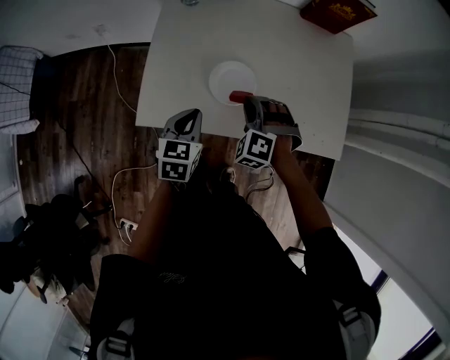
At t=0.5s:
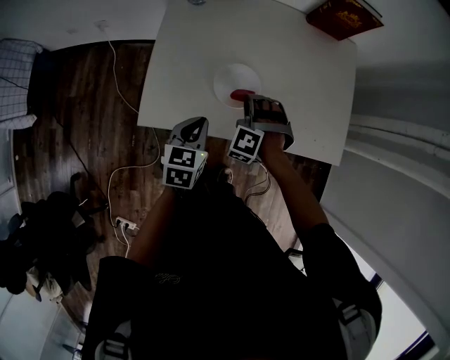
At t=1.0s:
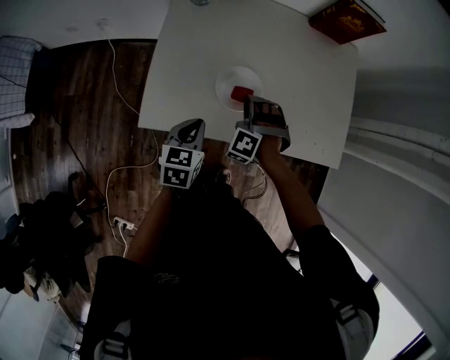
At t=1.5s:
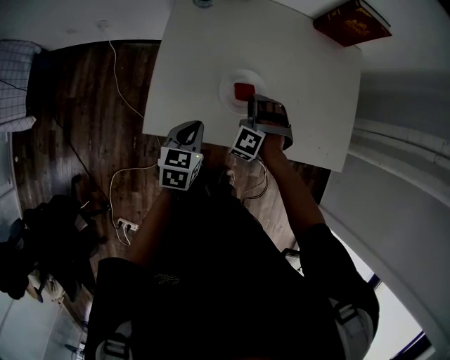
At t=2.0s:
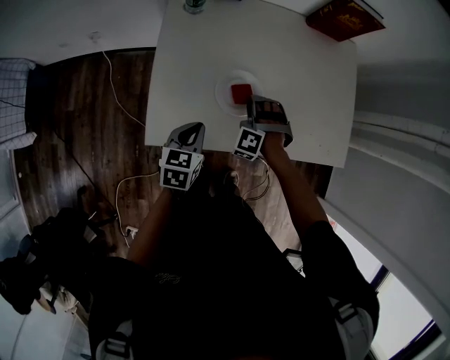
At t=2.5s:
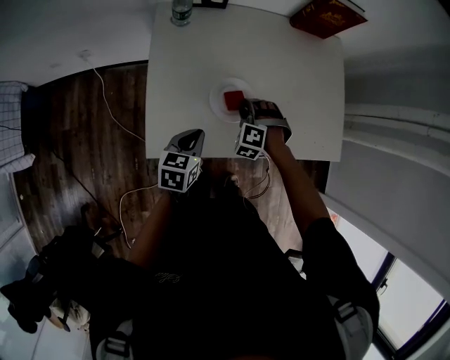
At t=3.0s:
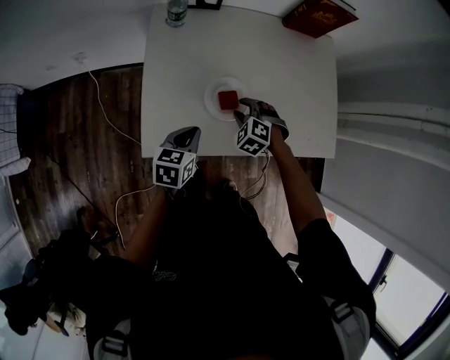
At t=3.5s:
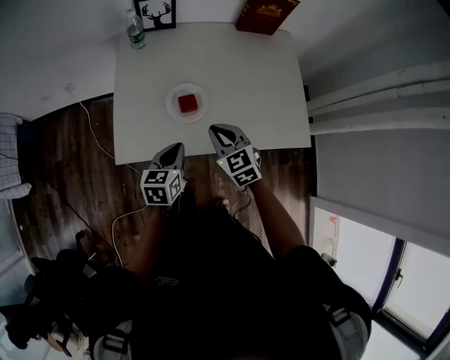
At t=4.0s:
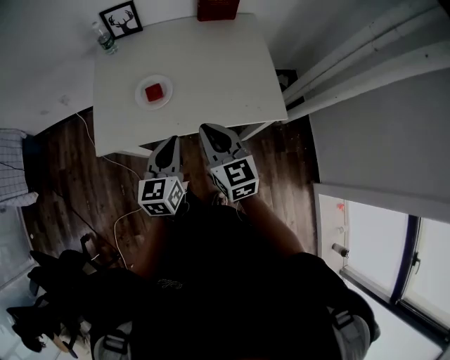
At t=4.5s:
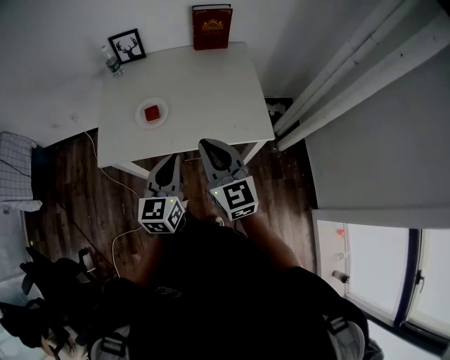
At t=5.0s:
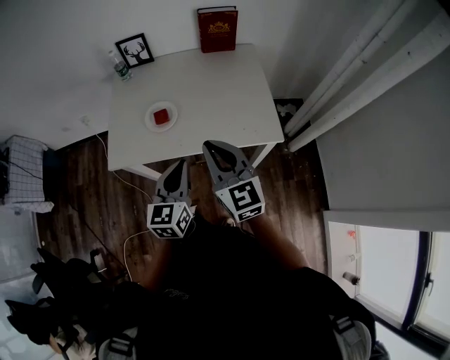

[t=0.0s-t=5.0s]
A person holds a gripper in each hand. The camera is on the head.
t=0.0s to t=2.5s: The right gripper is displaced downward and forward by roughly 10 cm.
t=2.5s to t=5.0s: The right gripper moves upward, backward and to the right, roughly 40 cm, tilts its fingers some 60 degrees upward, and closes its fingers; the left gripper shifts roughly 35 cm to the right, upward and backward, and rotates about 30 degrees.

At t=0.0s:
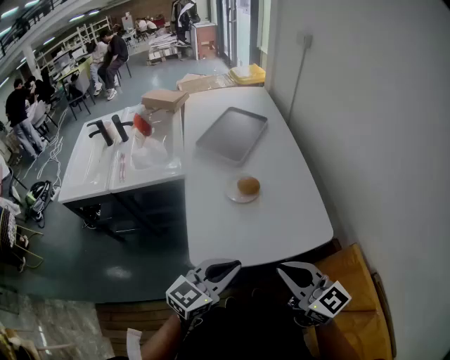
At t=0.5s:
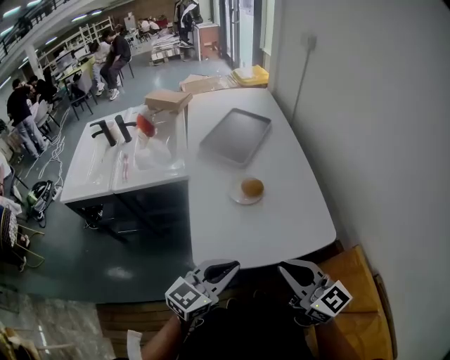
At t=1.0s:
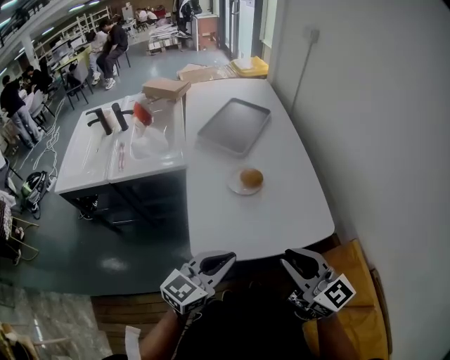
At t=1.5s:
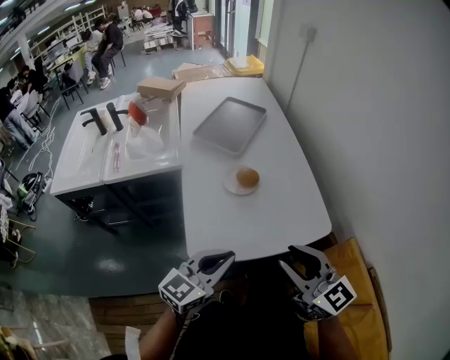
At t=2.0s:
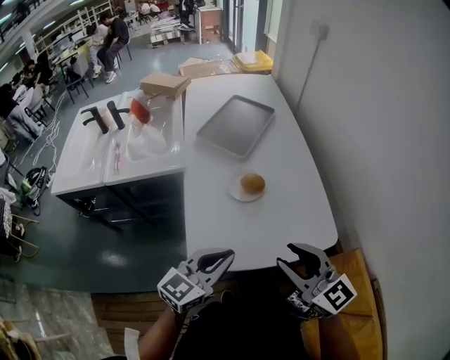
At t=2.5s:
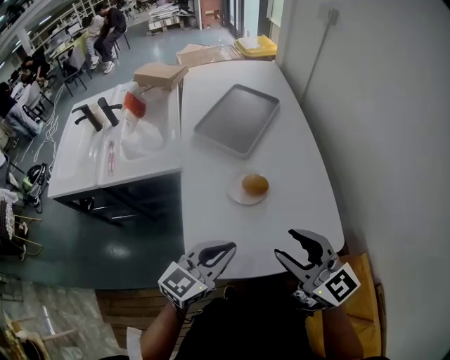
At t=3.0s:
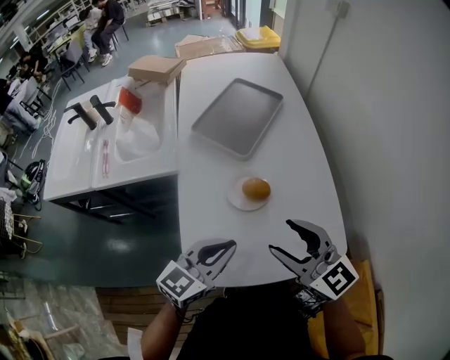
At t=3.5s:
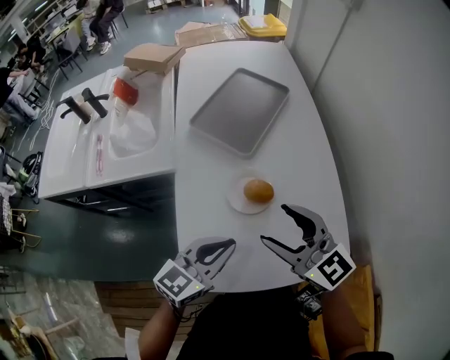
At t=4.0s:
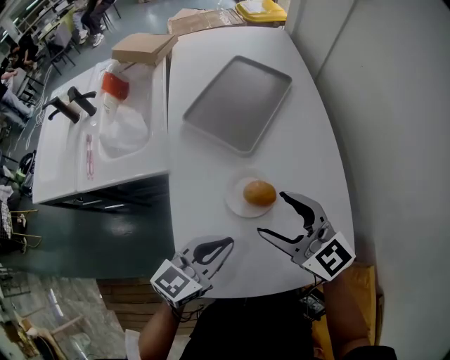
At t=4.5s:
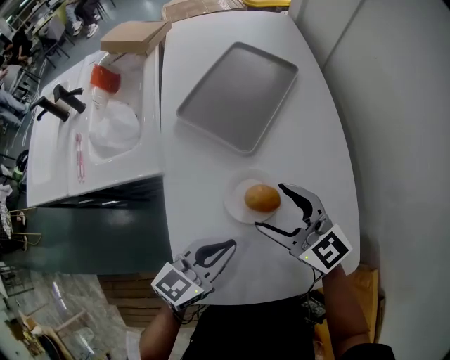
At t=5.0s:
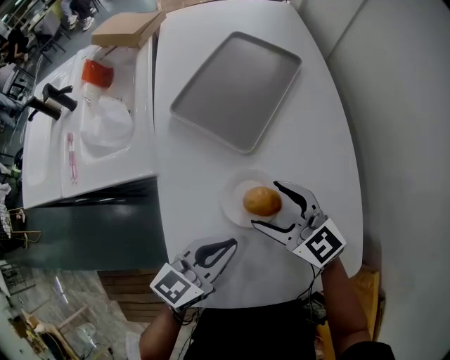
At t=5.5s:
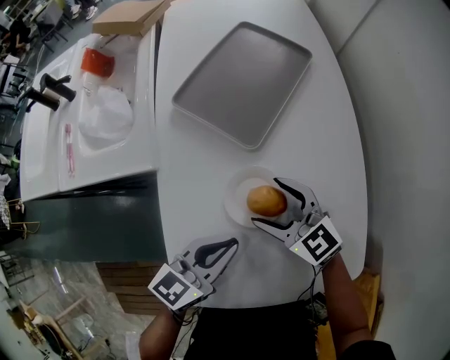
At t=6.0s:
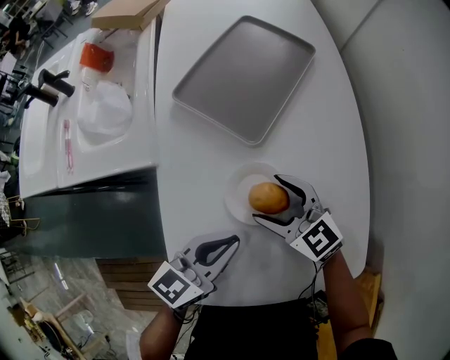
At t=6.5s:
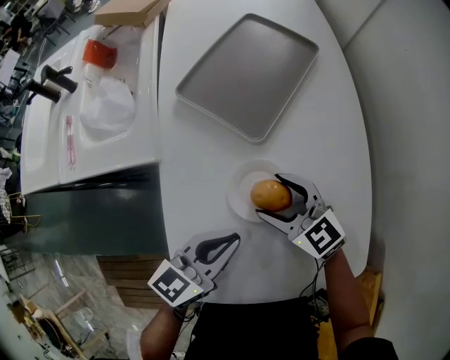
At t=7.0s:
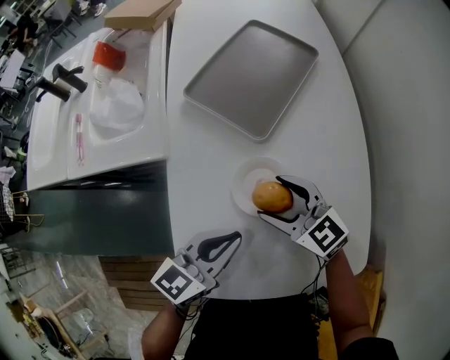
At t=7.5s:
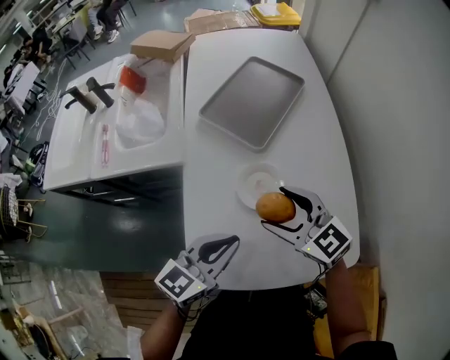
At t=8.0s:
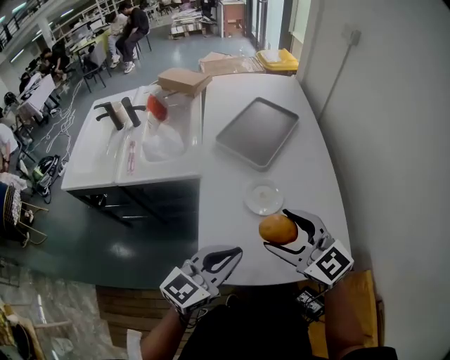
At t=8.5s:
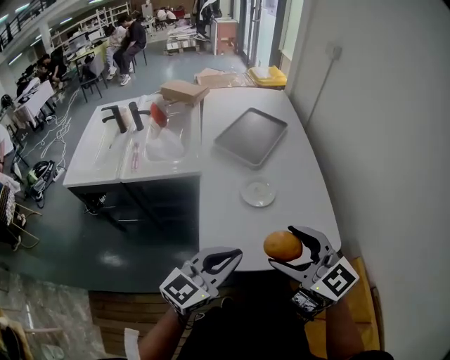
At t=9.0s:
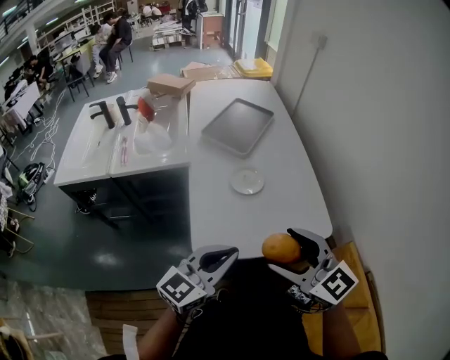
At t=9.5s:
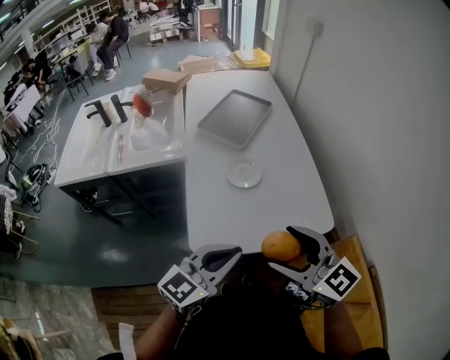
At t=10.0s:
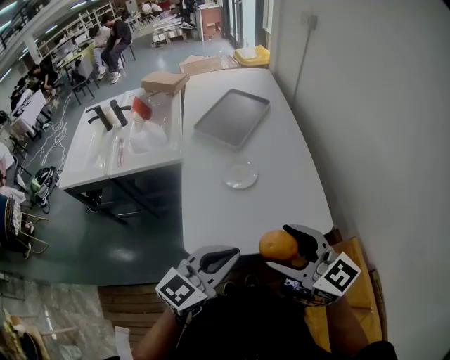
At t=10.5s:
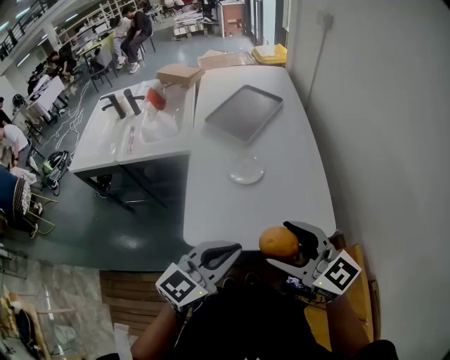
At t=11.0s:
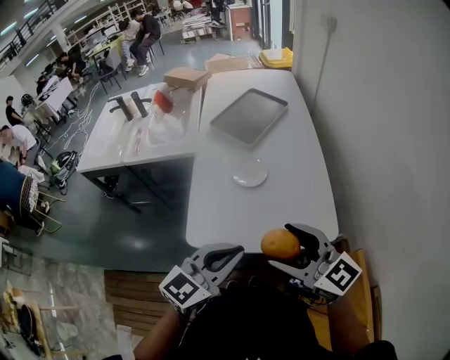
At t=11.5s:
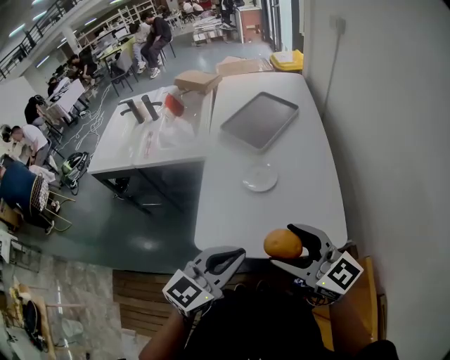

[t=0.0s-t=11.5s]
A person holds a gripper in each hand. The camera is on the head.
t=0.0s to t=2.0s: The grippers both shift forward by approximately 5 cm.
t=2.0s to t=4.0s: The right gripper shifts about 25 cm forward, and opens. Meanwhile the left gripper shifts some 20 cm forward and downward.
t=4.0s to t=6.0s: The right gripper is displaced downward and forward by about 15 cm; the left gripper shifts some 5 cm downward.
t=6.0s to t=7.5s: Both grippers travel together upward and backward, about 15 cm.
t=7.5s to t=9.5s: The two grippers go about 30 cm backward and upward.
t=9.5s to t=11.5s: The two grippers go some 5 cm to the right.

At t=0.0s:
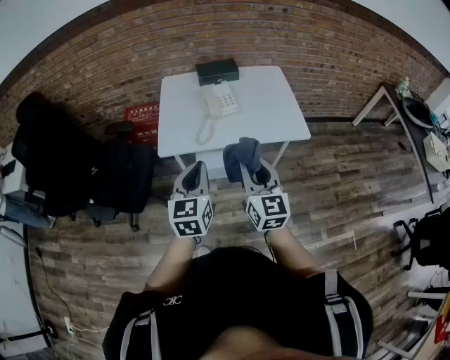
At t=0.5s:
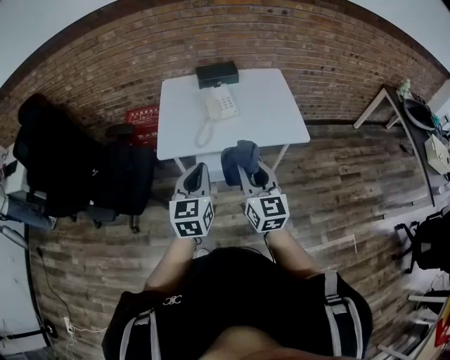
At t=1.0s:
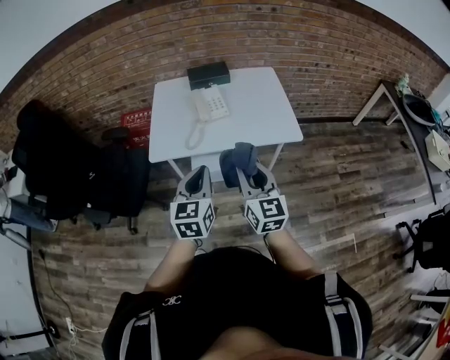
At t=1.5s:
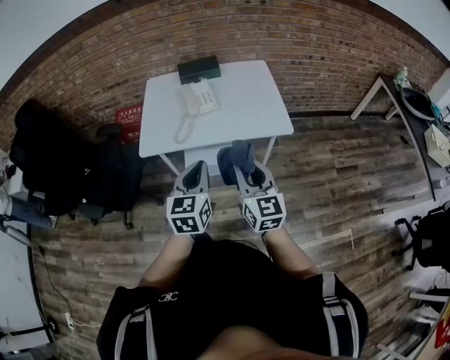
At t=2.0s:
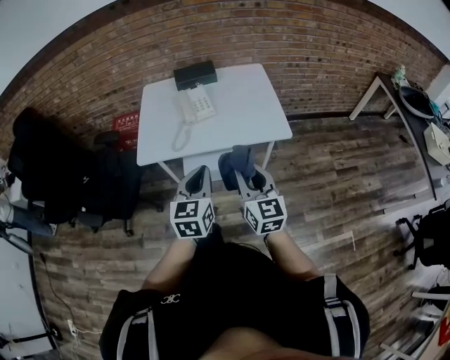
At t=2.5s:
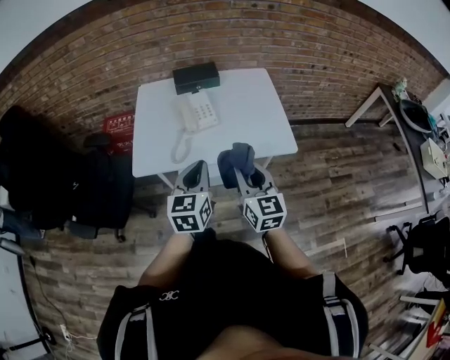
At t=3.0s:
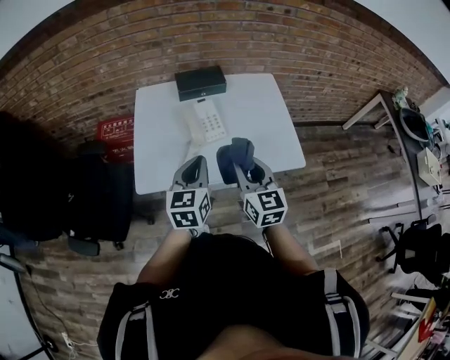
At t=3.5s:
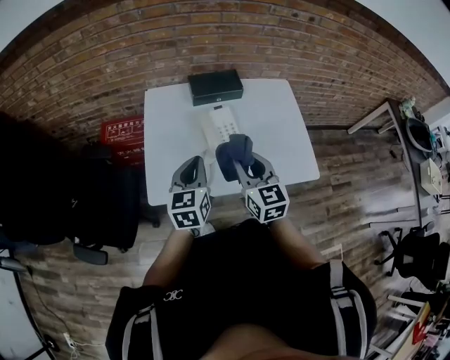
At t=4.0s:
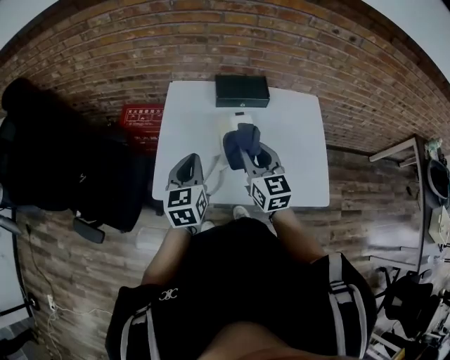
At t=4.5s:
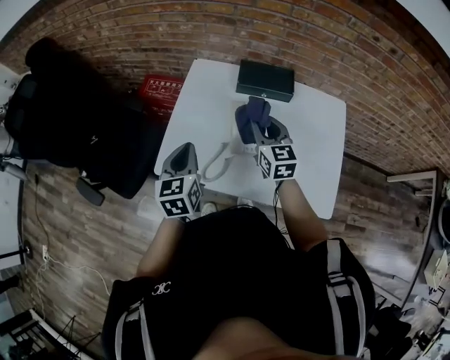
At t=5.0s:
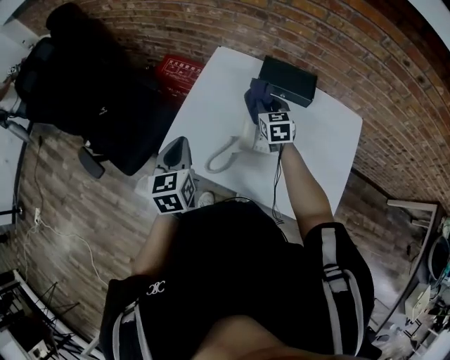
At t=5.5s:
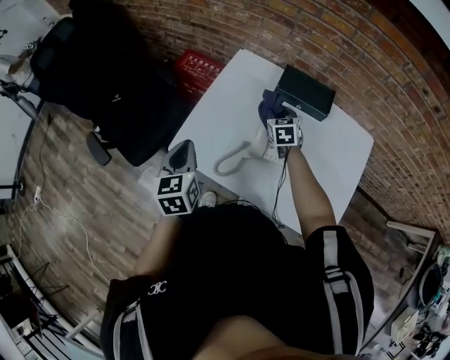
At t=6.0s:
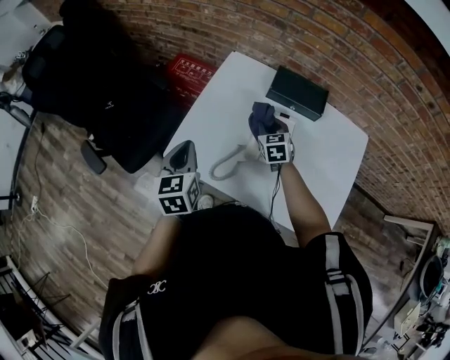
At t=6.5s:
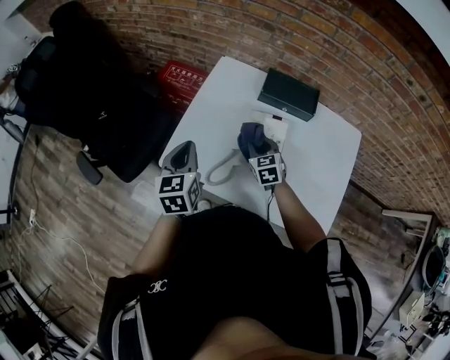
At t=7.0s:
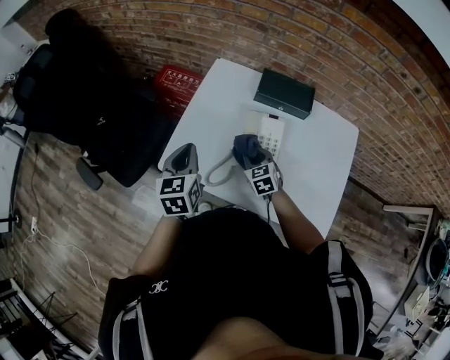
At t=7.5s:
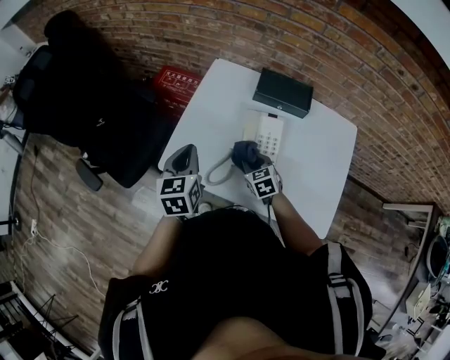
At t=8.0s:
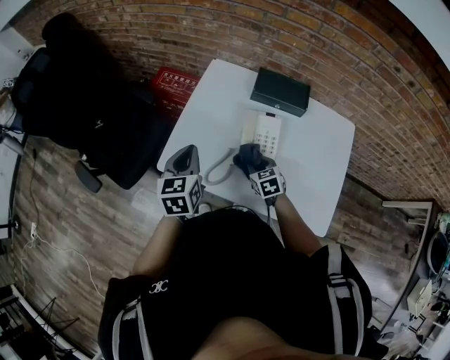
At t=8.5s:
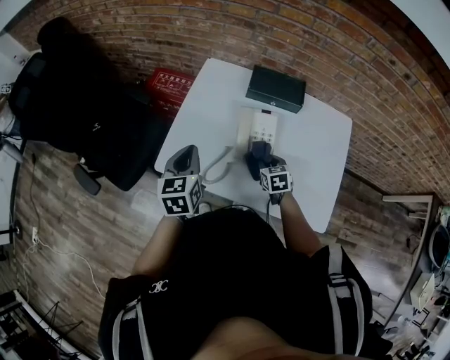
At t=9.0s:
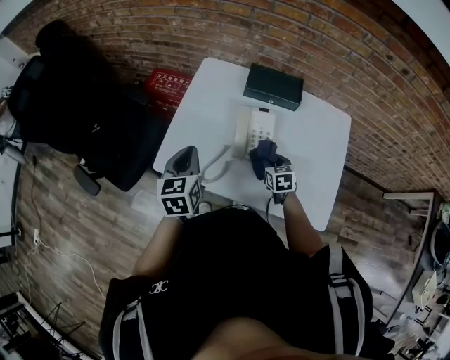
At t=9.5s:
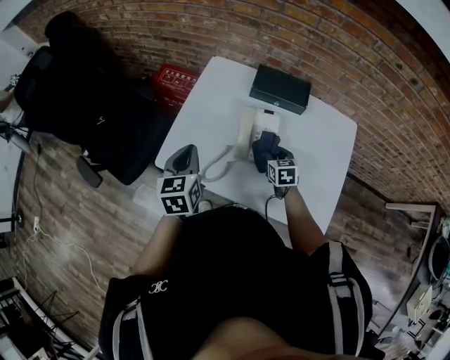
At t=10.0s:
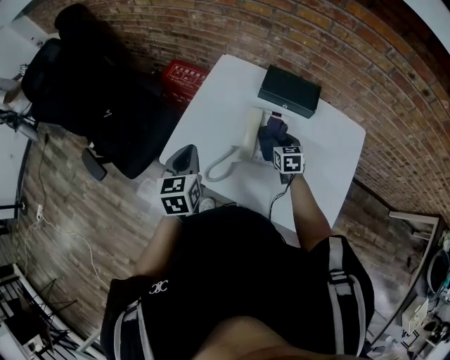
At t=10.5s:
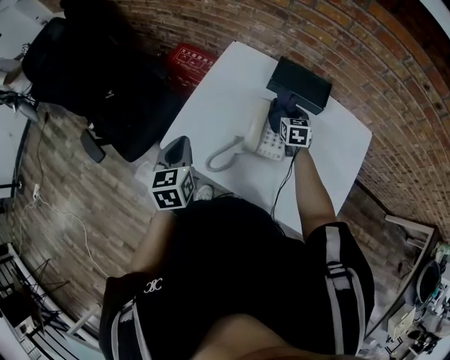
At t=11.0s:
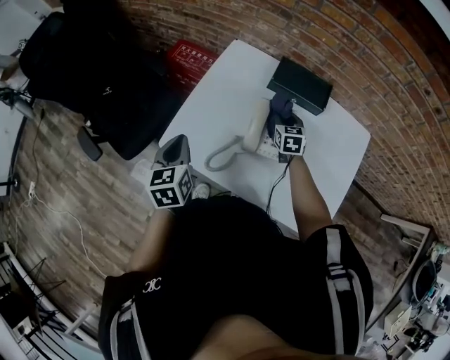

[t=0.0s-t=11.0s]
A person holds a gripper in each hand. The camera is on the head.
t=0.0s to t=2.0s: The two grippers go some 15 cm to the right.
t=2.0s to t=3.5s: The two grippers go approximately 35 cm forward and to the left.
t=3.5s to t=5.5s: The left gripper moves about 10 cm, and changes its angle by about 40 degrees, while the right gripper moves approximately 35 cm, and rotates about 40 degrees.
t=5.5s to t=7.5s: The right gripper heads backward, covering roughly 15 cm.
t=7.5s to t=9.0s: The right gripper moves to the right, some 10 cm.
t=9.0s to t=11.0s: The left gripper shifts approximately 5 cm to the left; the right gripper travels forward by approximately 15 cm.
